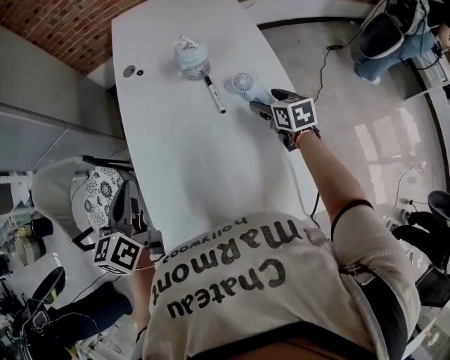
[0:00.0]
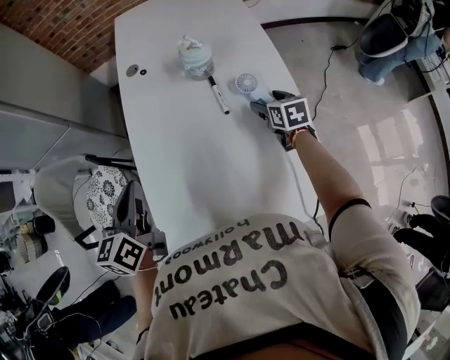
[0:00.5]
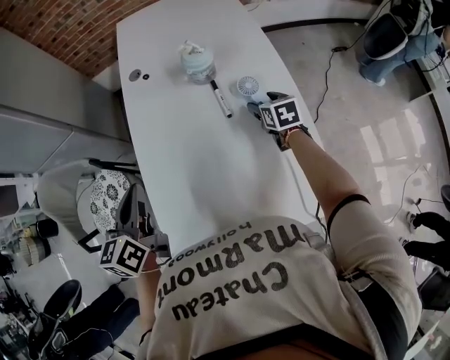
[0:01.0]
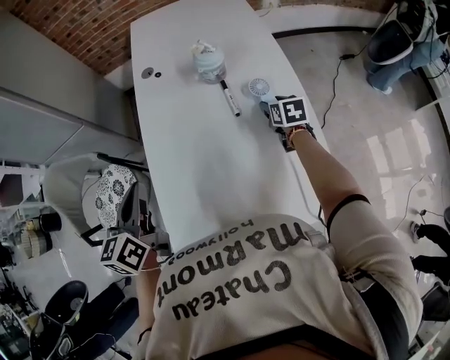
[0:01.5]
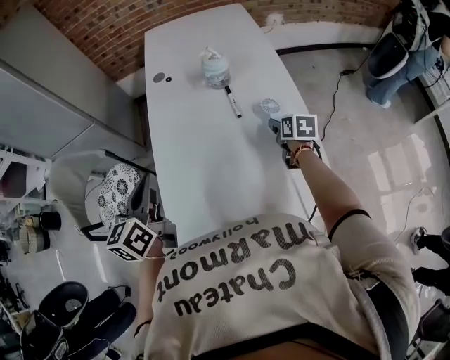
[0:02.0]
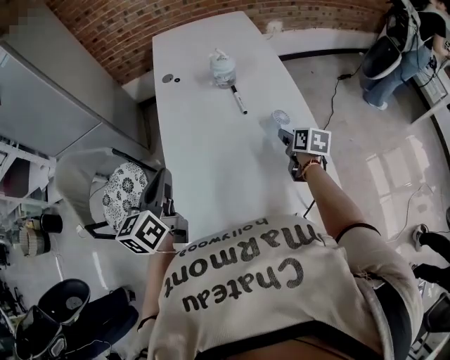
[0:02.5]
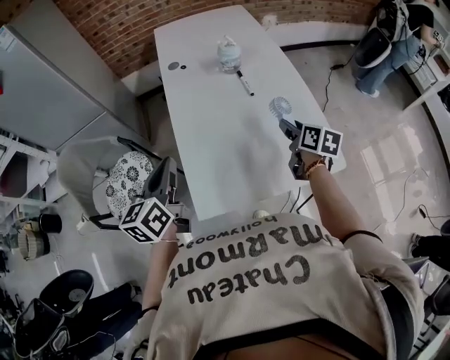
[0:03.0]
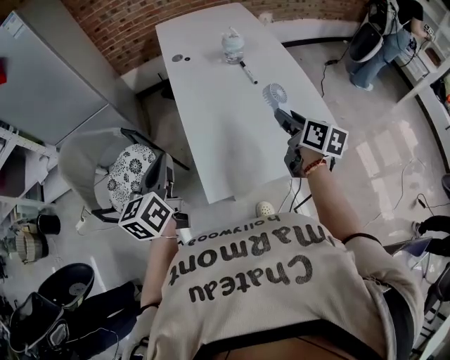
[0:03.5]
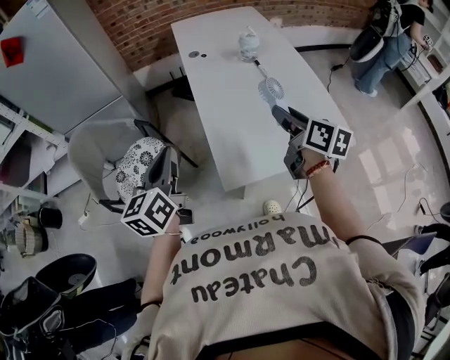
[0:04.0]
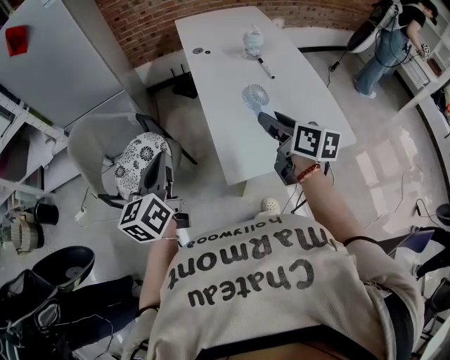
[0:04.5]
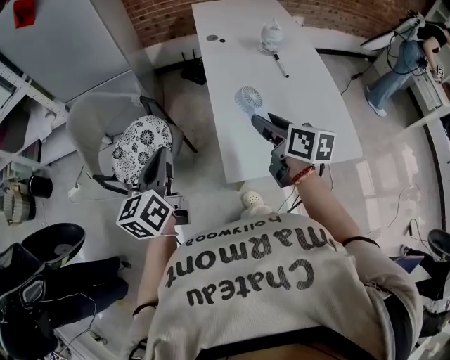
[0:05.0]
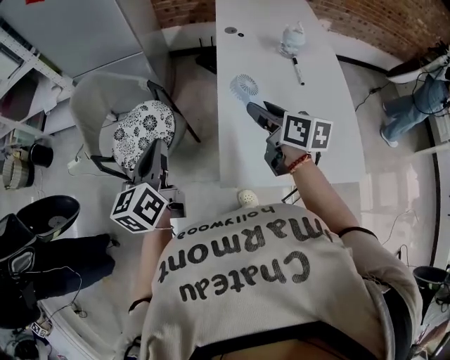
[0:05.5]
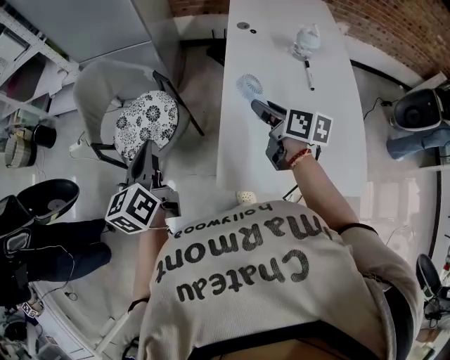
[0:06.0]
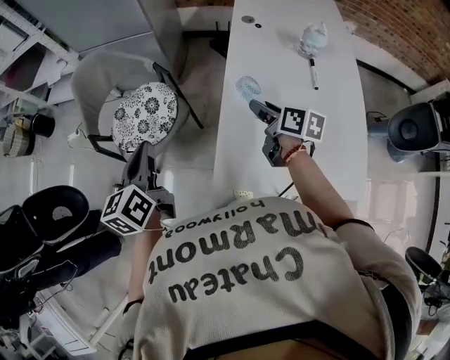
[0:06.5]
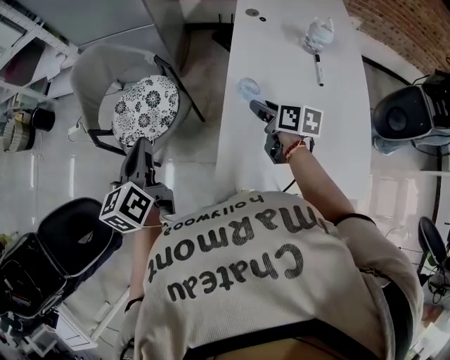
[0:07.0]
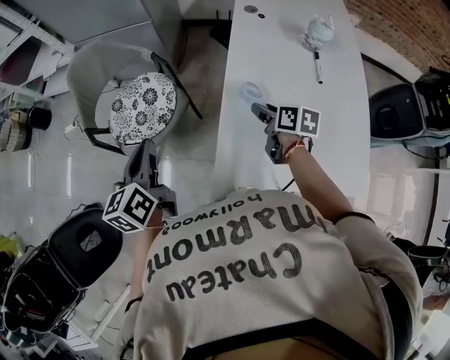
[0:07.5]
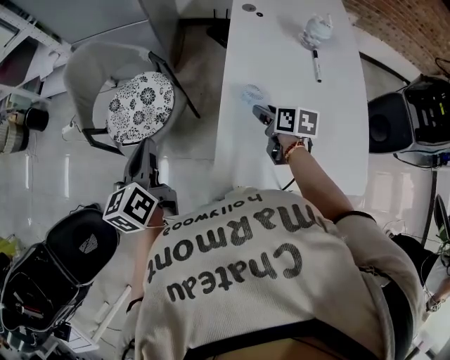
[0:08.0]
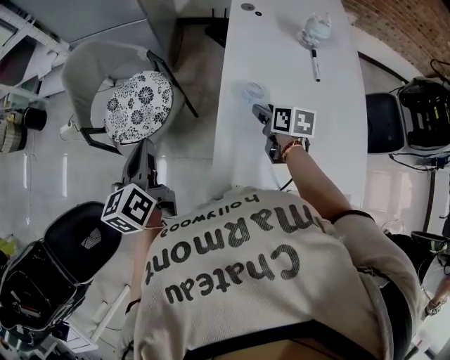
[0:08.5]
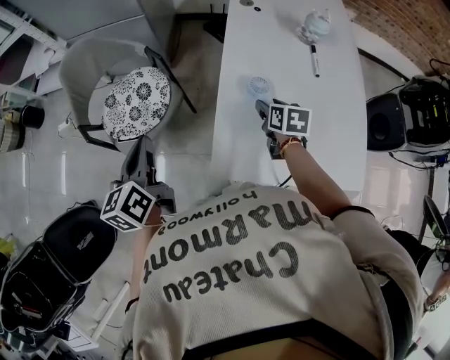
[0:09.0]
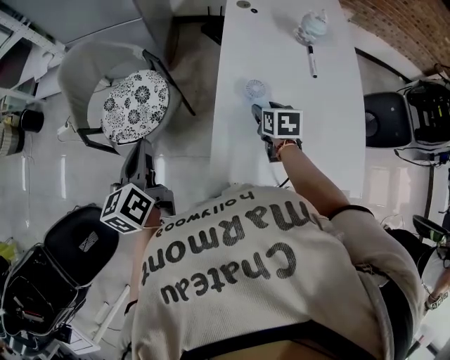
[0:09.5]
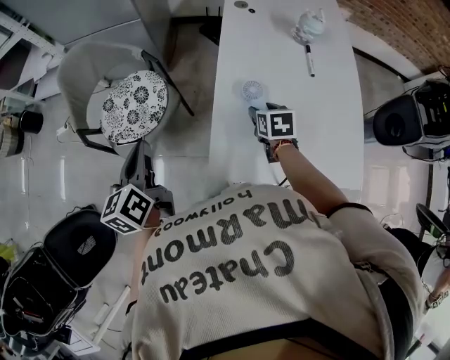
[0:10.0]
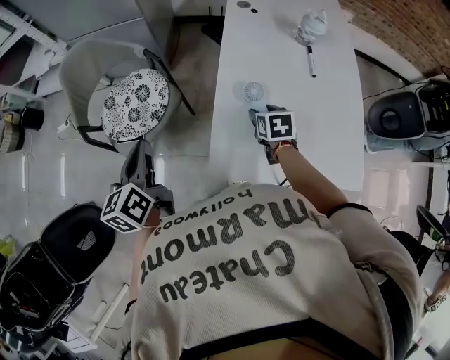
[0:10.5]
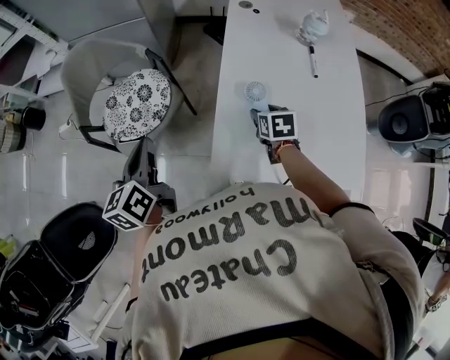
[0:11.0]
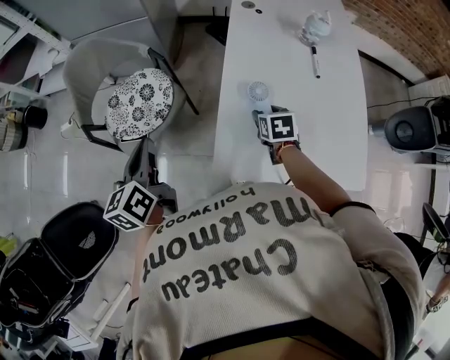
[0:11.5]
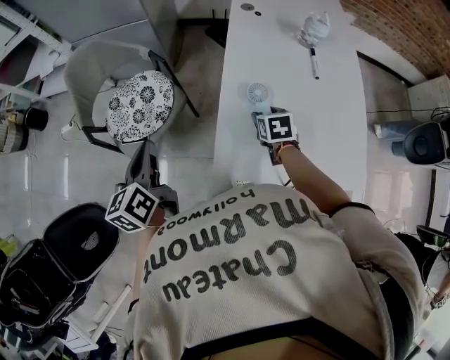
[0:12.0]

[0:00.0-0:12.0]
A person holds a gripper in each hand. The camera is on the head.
0:00.0 to 0:02.0: Both grippers travel together backward, roughly 5 cm. The right gripper closes its fingers.
0:02.0 to 0:04.0: The left gripper shifts some 25 cm to the left and backward. Meanwhile the right gripper goes approximately 40 cm backward, to the left and upward, and turns by some 30 degrees.
0:04.0 to 0:06.0: The left gripper moves some 10 cm, and swivels approximately 30 degrees, while the right gripper changes place by approximately 20 cm, and swivels roughly 30 degrees.
0:06.0 to 0:08.0: The right gripper travels downward by approximately 10 cm.
0:08.0 to 0:10.0: The right gripper rotates roughly 20 degrees.
0:10.0 to 0:12.0: The grippers make only small movements.

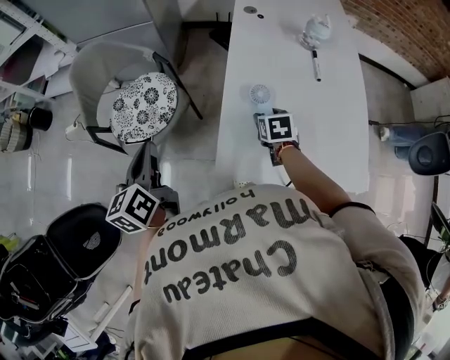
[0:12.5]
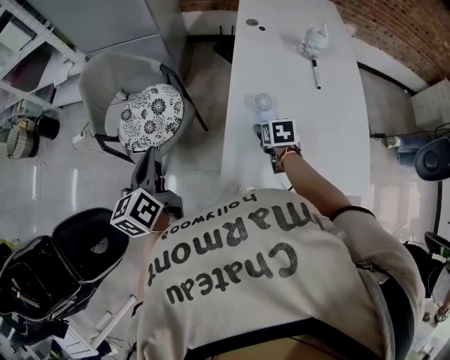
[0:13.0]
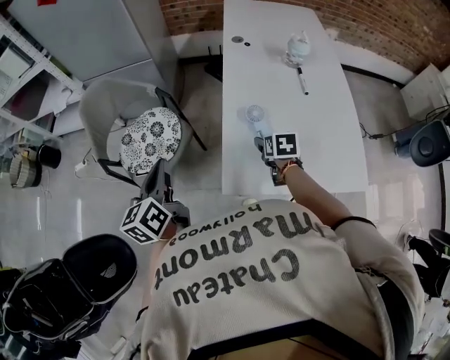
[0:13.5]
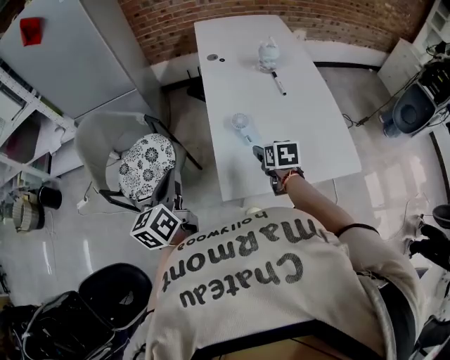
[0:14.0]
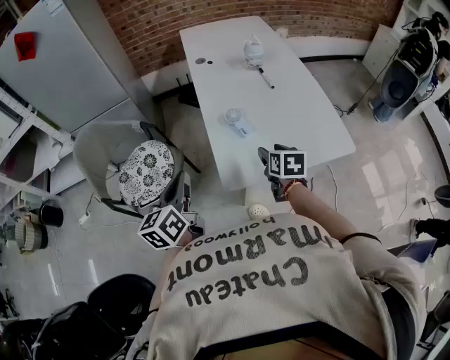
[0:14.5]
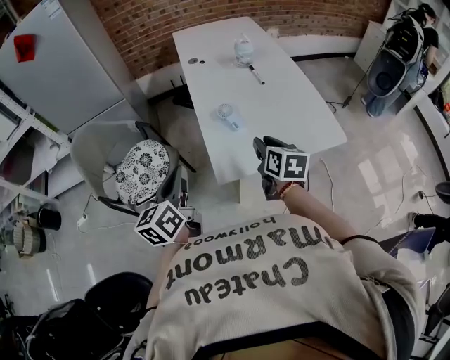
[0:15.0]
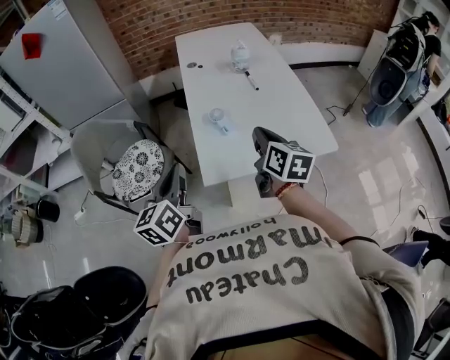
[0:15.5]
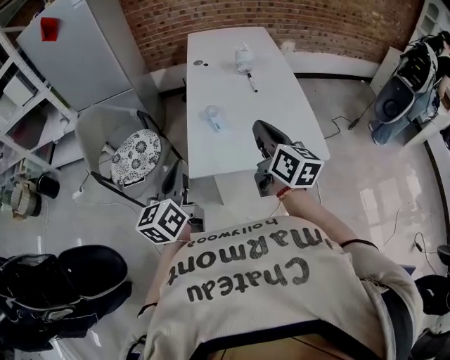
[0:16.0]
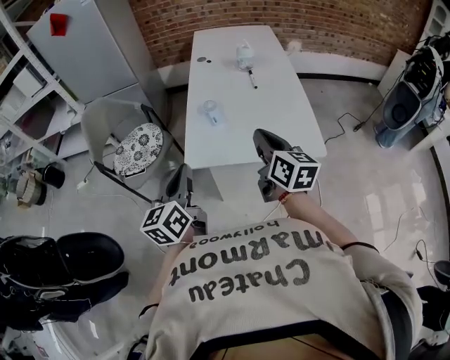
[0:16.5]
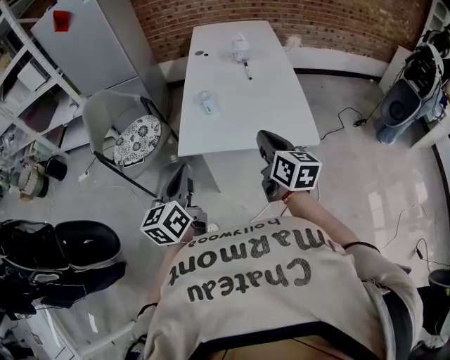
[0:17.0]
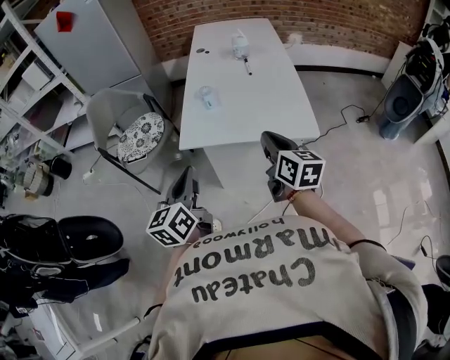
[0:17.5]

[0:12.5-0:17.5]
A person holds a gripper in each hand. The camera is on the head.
0:12.5 to 0:15.0: The right gripper changes place by approximately 25 cm, and changes its angle by some 40 degrees. The left gripper shifts by about 10 cm, and turns by approximately 30 degrees.
0:15.0 to 0:17.5: The left gripper travels backward and to the right by approximately 30 cm. The right gripper is displaced to the right, backward and upward by roughly 25 cm, and swivels some 20 degrees.

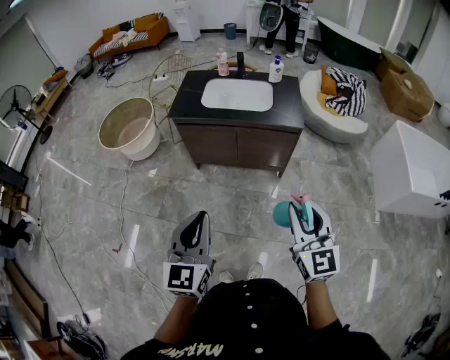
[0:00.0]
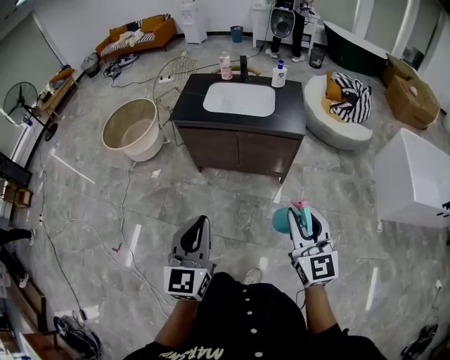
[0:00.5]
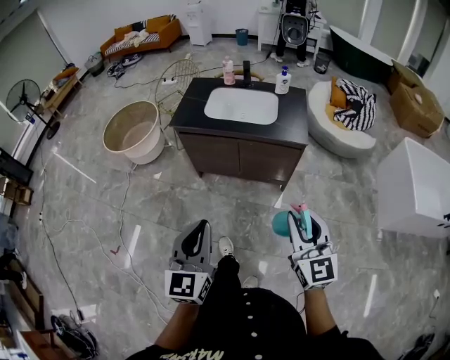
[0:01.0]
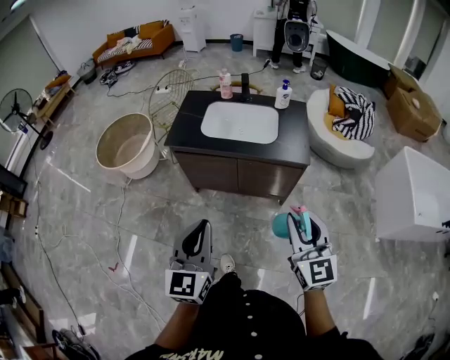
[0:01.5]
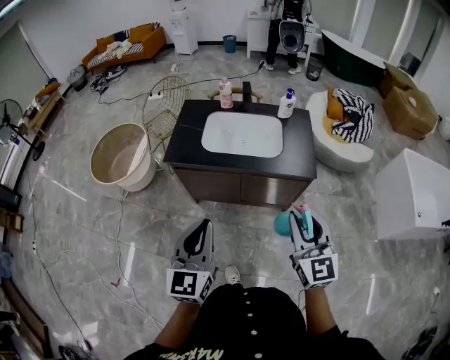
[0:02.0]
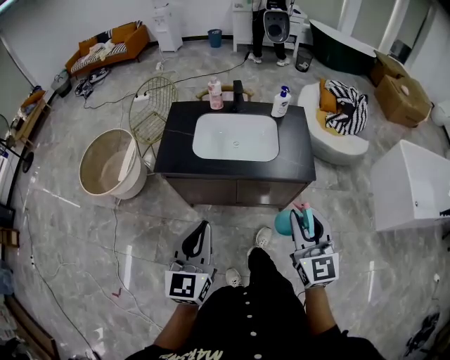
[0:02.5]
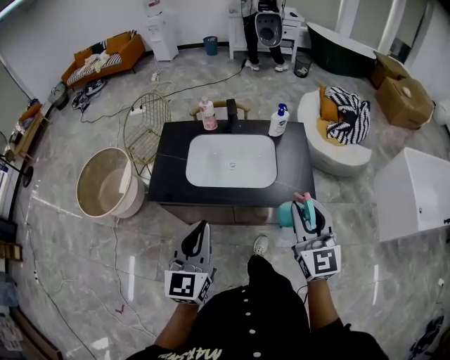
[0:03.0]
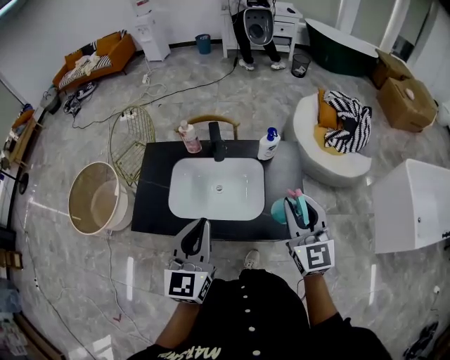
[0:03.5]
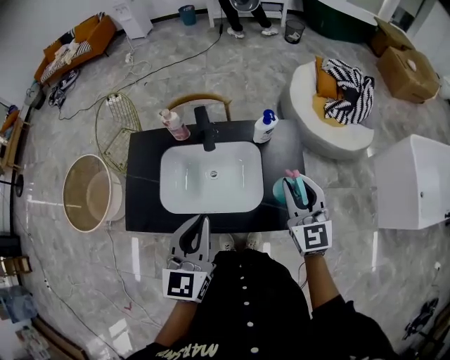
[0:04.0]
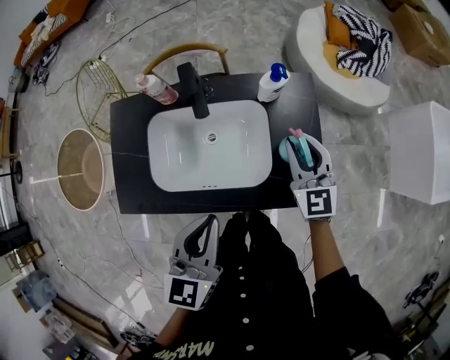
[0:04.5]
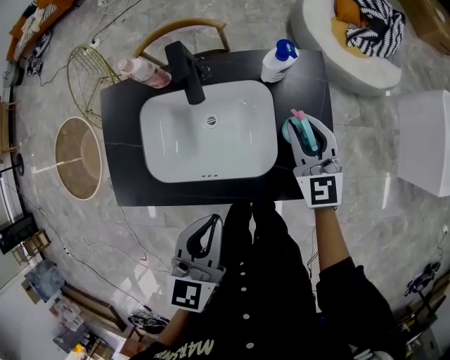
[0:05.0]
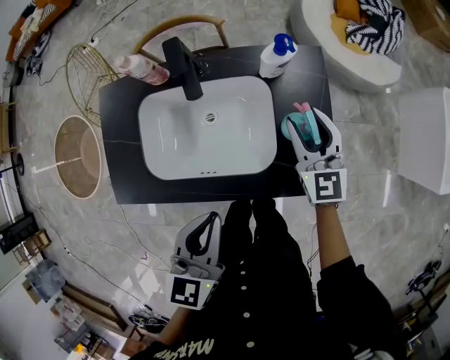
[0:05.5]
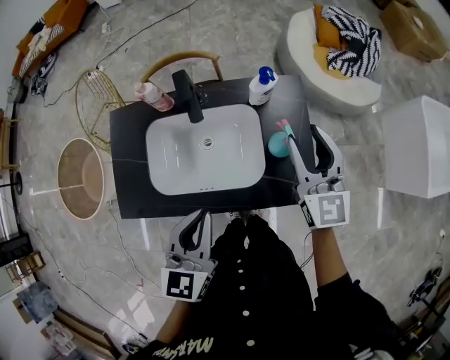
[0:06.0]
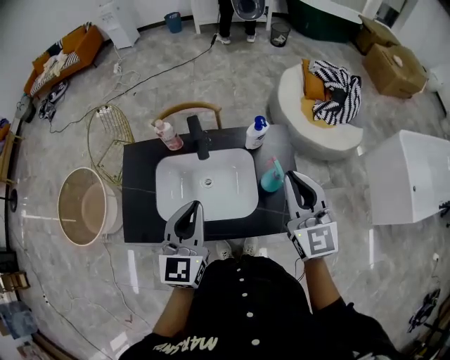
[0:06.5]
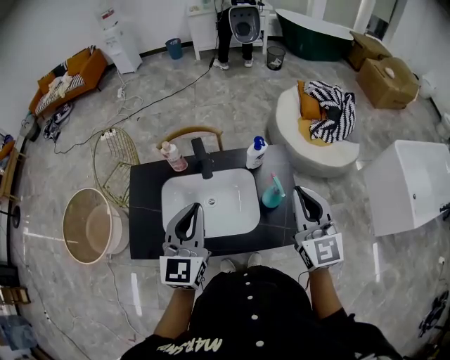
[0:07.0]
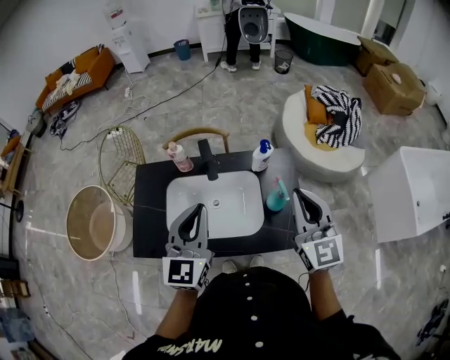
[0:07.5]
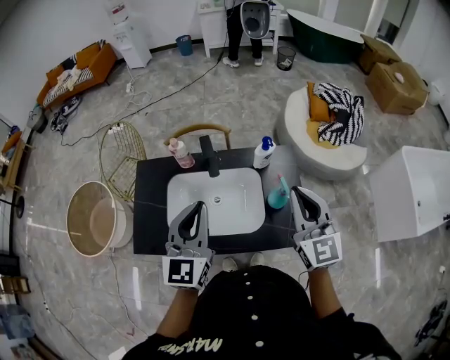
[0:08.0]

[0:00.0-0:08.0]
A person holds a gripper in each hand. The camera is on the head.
0:00.0 to 0:02.0: Both grippers travel together forward, approximately 25 cm.
0:02.0 to 0:04.0: The two grippers travel together, forward, about 40 cm.
0:04.0 to 0:06.0: The right gripper travels forward by about 5 cm, moves roughly 15 cm downward and comes back, and opens. The left gripper shifts approximately 5 cm downward.
0:06.0 to 0:08.0: The right gripper goes some 10 cm upward and backward, and closes its fingers, while the left gripper moves upward and forward, approximately 10 cm.

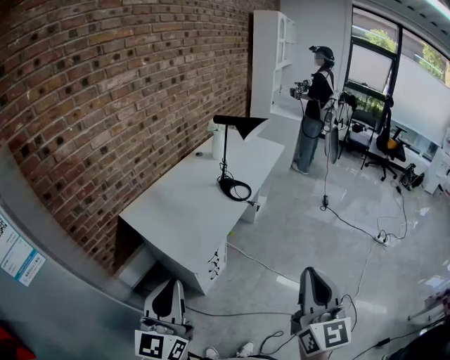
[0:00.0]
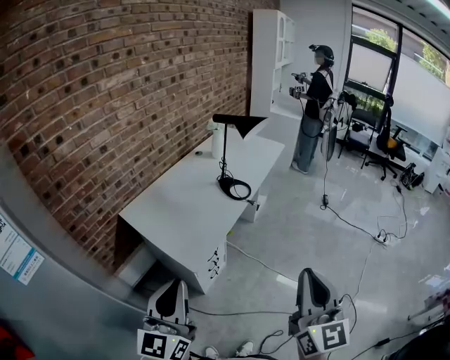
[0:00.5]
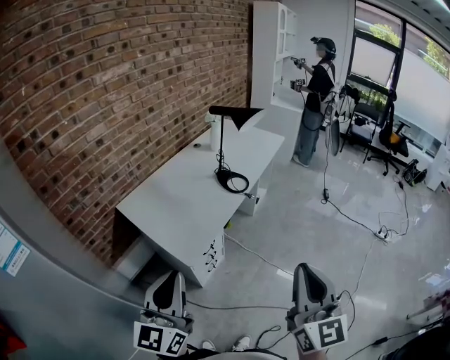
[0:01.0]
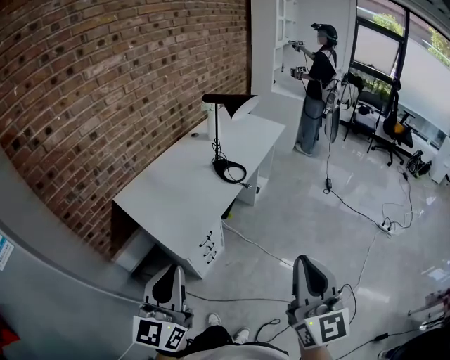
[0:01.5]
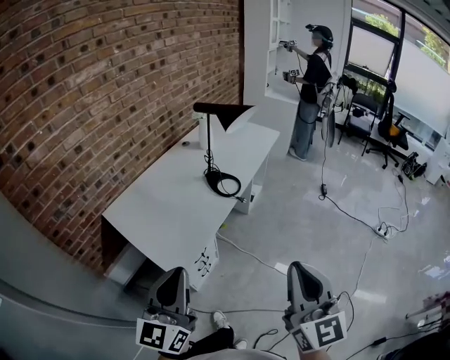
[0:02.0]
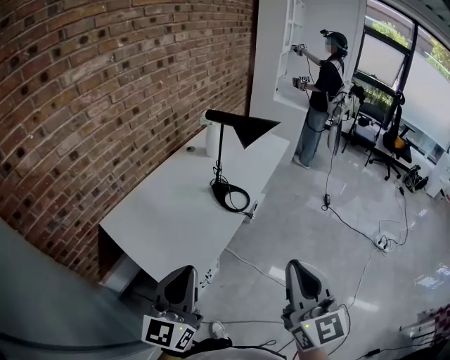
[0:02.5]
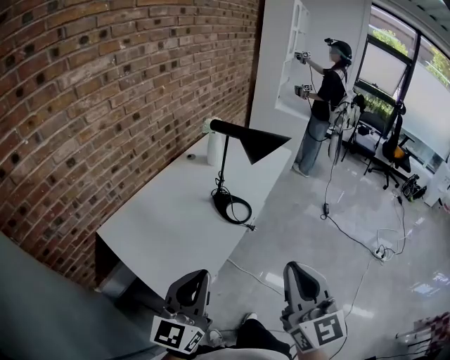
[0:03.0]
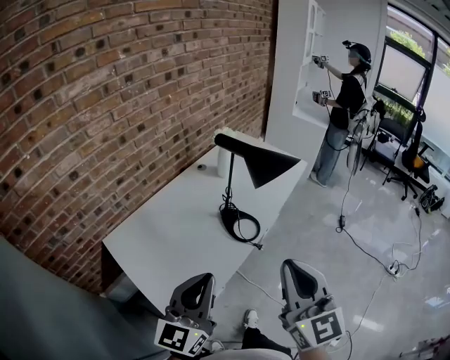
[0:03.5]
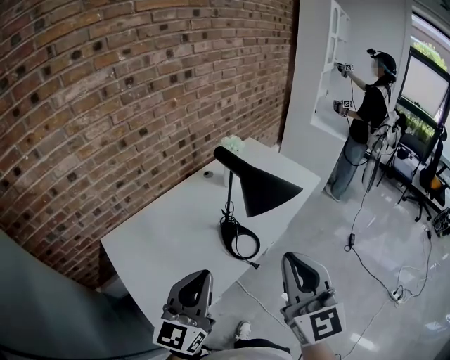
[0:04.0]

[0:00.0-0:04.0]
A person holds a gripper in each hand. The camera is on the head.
0:00.0 to 0:02.0: The right gripper goes some 10 cm forward. Meanwhile the left gripper travels forward and to the right by about 15 cm.
0:02.0 to 0:04.0: Both grippers travel together forward, approximately 35 cm.
